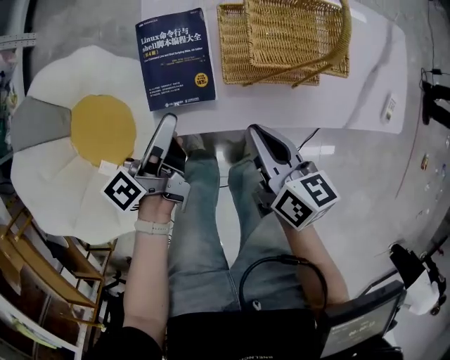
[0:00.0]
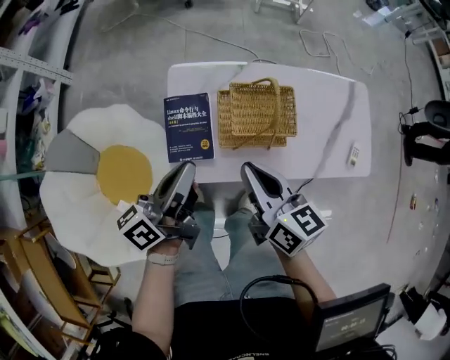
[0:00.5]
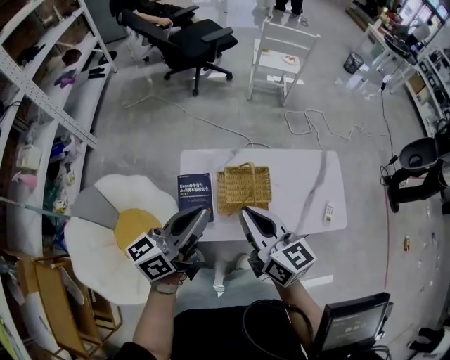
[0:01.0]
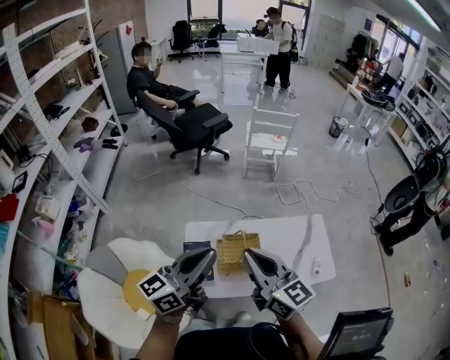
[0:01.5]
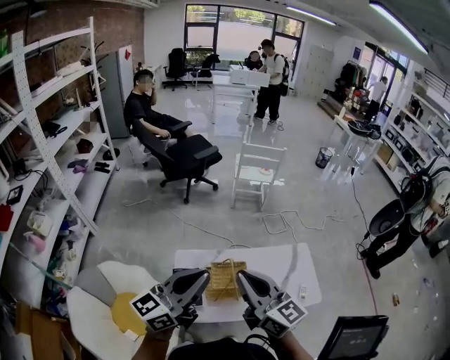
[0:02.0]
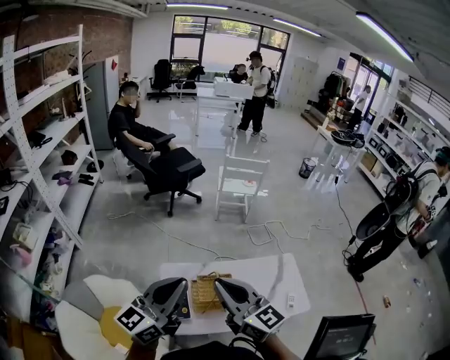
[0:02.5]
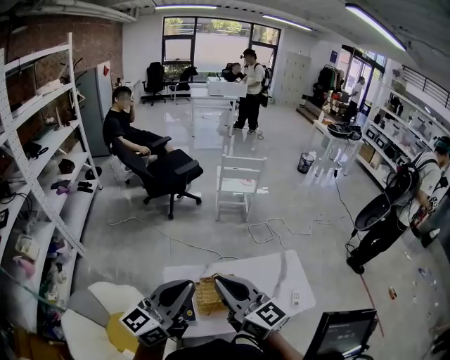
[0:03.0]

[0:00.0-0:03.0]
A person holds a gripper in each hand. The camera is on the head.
0:00.0 to 0:01.5: Both grippers travel together upward, about 50 cm. The left gripper twists approximately 50 degrees clockwise, seen from behind, and closes its fingers. The right gripper tilts its fingers roughly 30 degrees upward.
0:01.5 to 0:03.0: The grippers both shift upward by approximately 5 cm.

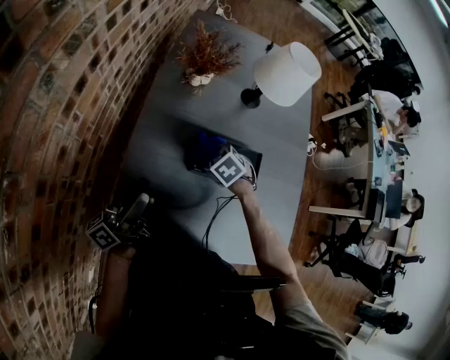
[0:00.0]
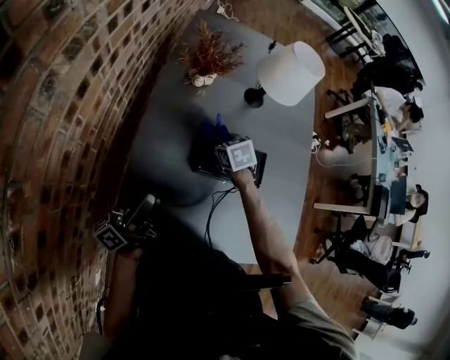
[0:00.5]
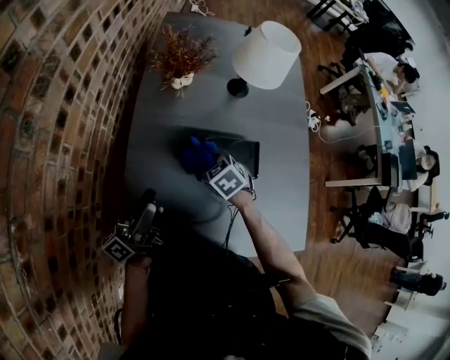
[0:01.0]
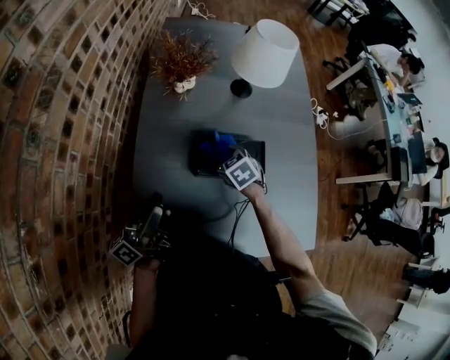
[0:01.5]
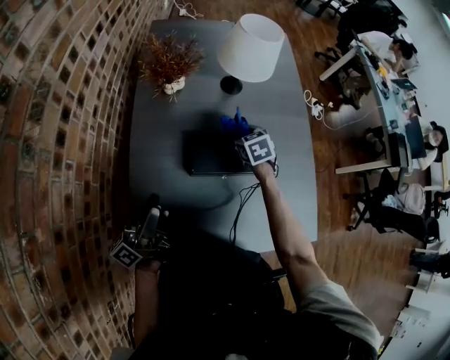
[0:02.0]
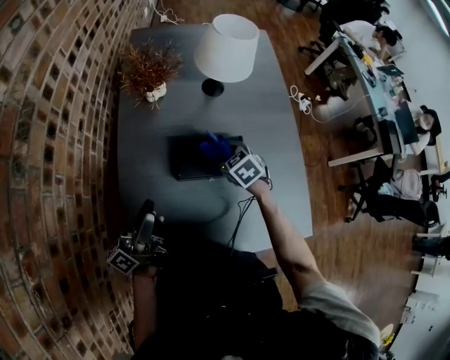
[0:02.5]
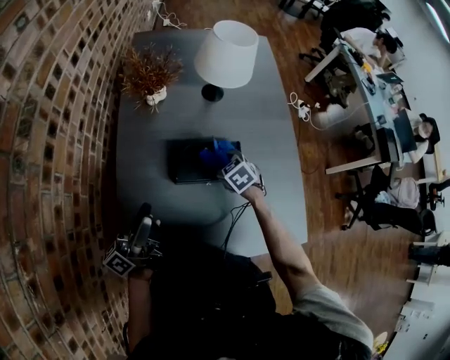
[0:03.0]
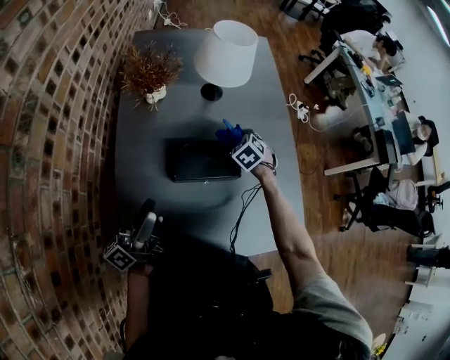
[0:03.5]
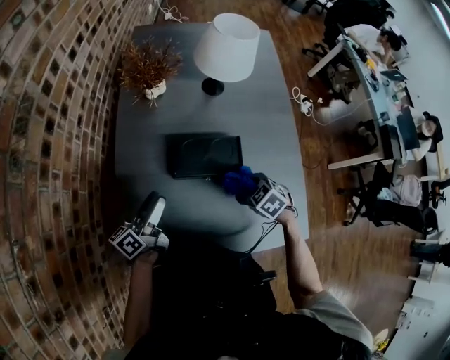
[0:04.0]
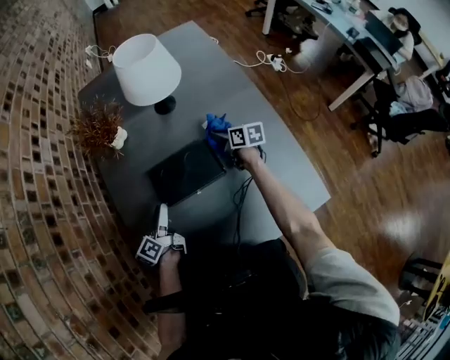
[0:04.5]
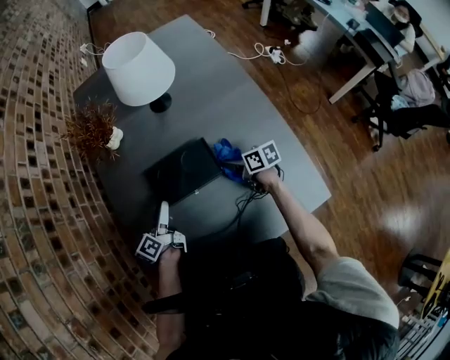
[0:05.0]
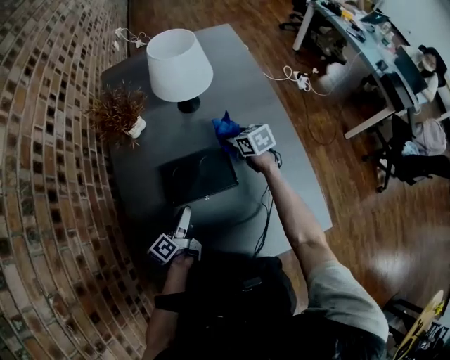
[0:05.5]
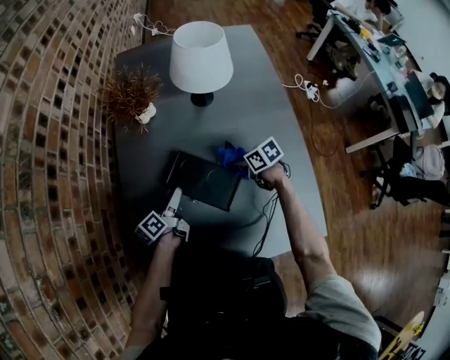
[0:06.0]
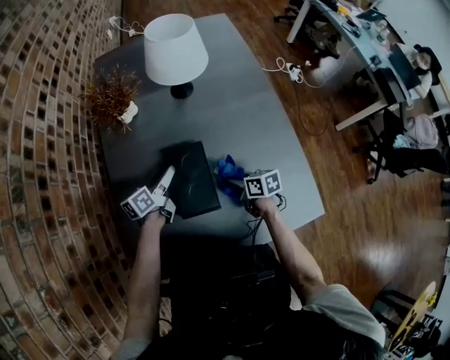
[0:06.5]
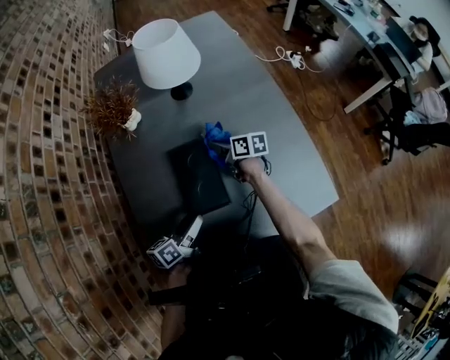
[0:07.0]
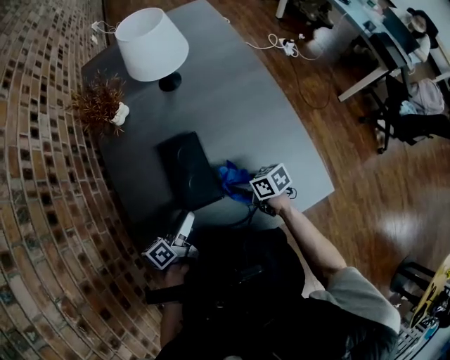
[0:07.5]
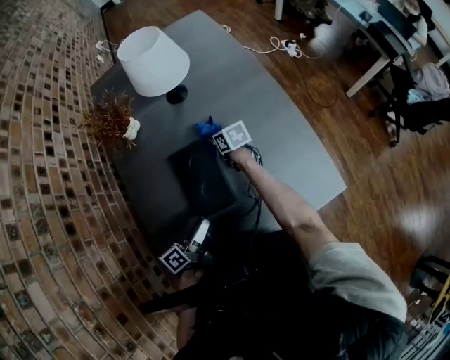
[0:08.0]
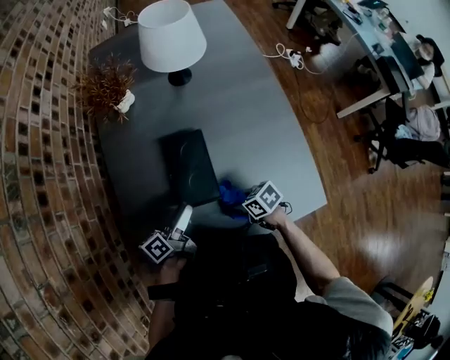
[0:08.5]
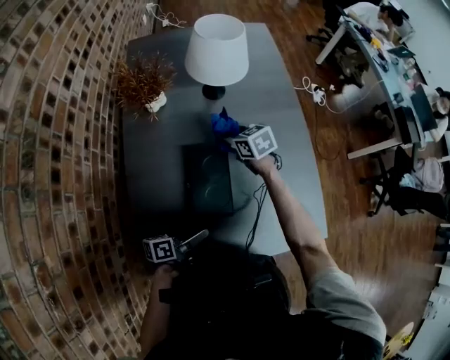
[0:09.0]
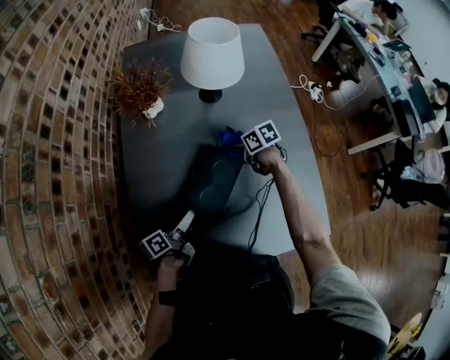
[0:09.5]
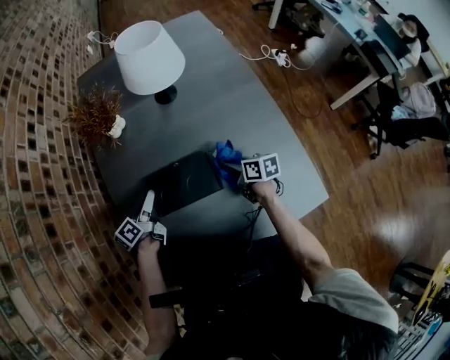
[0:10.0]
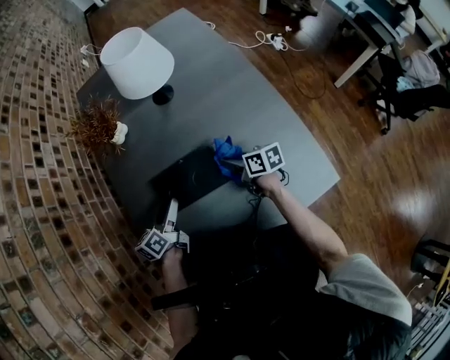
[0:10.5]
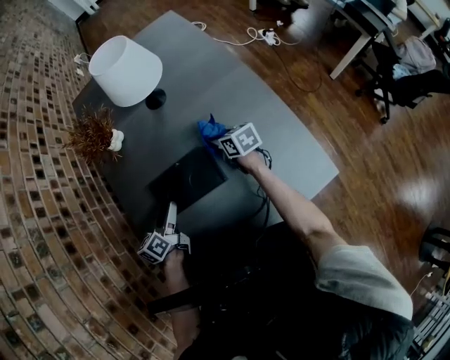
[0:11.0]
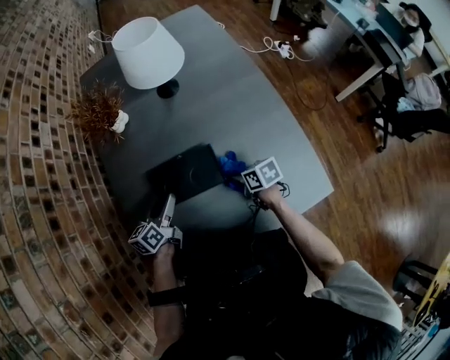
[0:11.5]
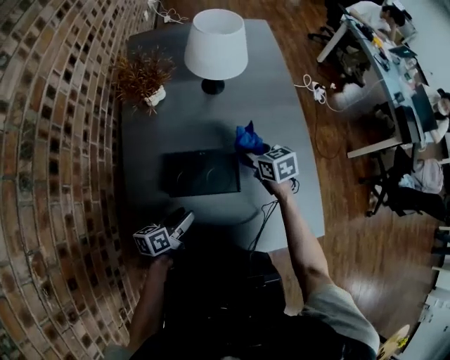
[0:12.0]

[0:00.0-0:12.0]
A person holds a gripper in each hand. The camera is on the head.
0:00.0 to 0:02.0: The right gripper goes approximately 15 cm to the right and forward, and swivels approximately 40 degrees.
0:02.0 to 0:04.0: The right gripper goes forward and backward, approximately 20 cm each way, reversing 2 times, and swivels roughly 30 degrees; the left gripper is displaced downward and to the right by approximately 10 cm, and swivels about 20 degrees.
0:04.0 to 0:06.0: The left gripper shifts some 15 cm downward, forward and to the right; the right gripper moves forward and backward over approximately 20 cm, changing direction 3 times, and rotates about 40 degrees.
0:06.0 to 0:08.0: The right gripper rotates some 30 degrees; the left gripper moves approximately 15 cm, and swivels some 20 degrees.
0:08.0 to 0:10.0: The left gripper changes place by approximately 20 cm. Meanwhile the right gripper travels upward and back again, some 10 cm each way.
0:10.0 to 0:12.0: The left gripper travels backward and to the right by approximately 15 cm; the right gripper goes forward and backward, approximately 15 cm each way, reversing 2 times, and changes its angle by about 40 degrees.

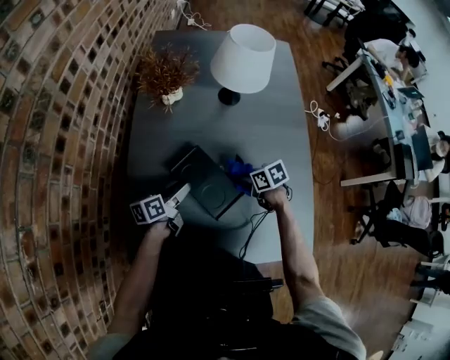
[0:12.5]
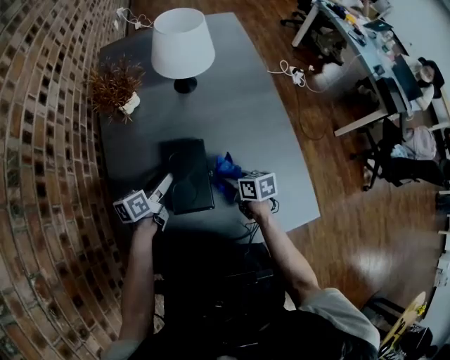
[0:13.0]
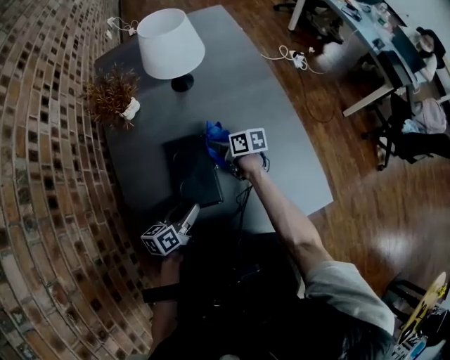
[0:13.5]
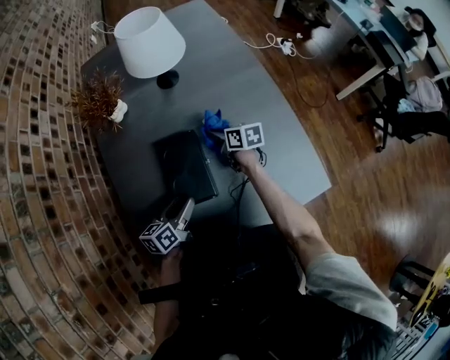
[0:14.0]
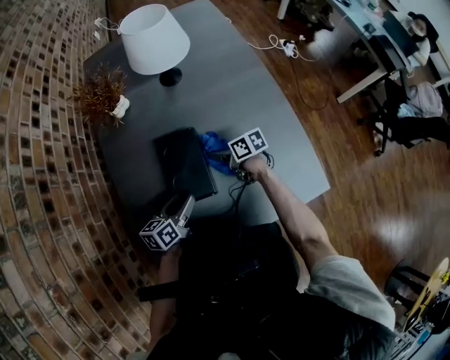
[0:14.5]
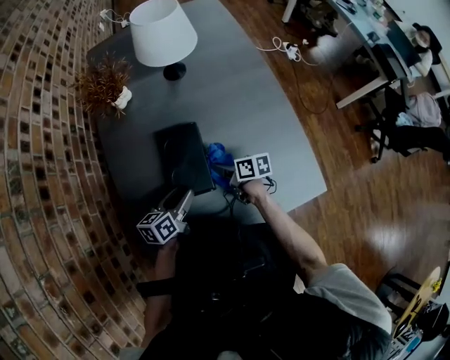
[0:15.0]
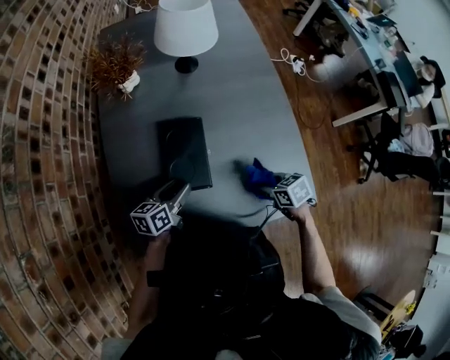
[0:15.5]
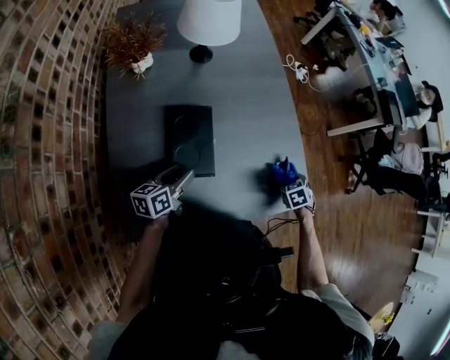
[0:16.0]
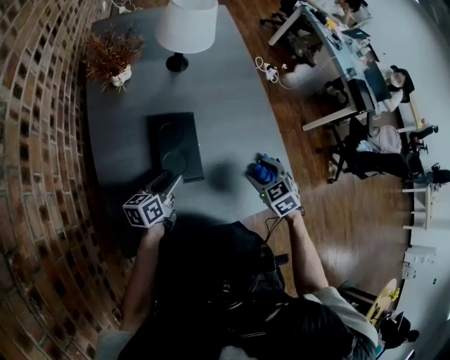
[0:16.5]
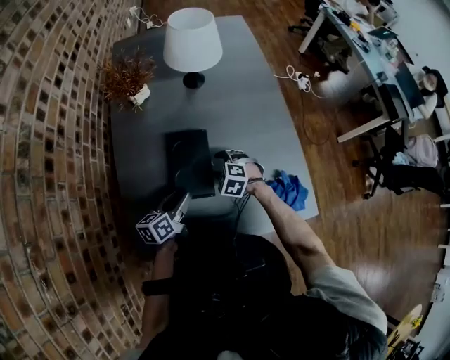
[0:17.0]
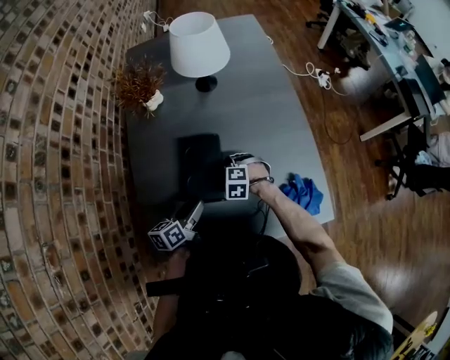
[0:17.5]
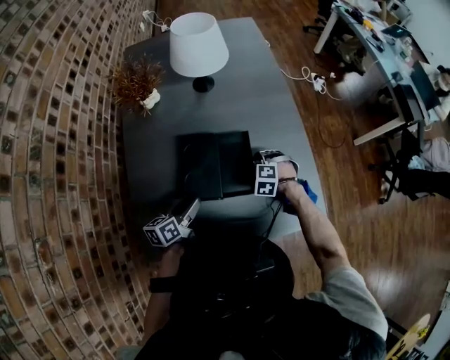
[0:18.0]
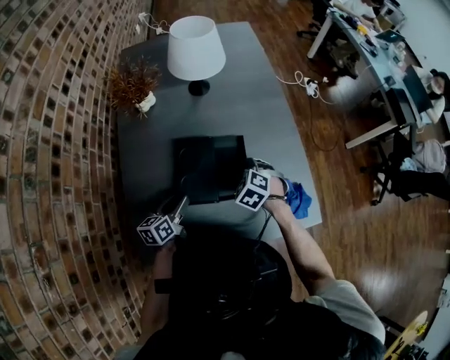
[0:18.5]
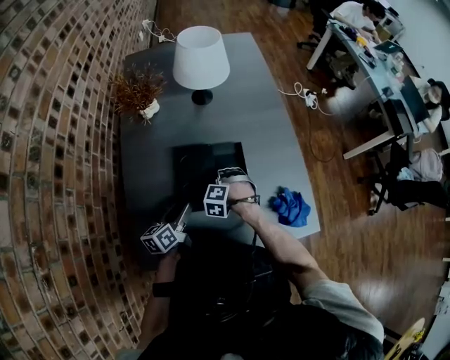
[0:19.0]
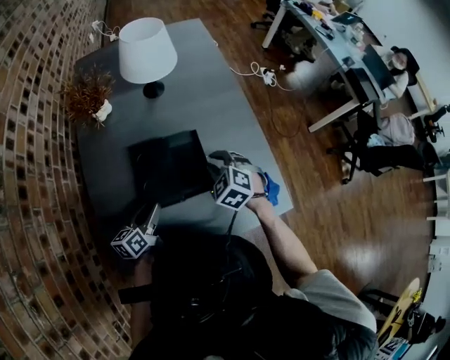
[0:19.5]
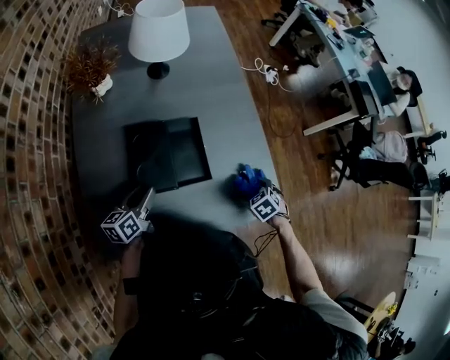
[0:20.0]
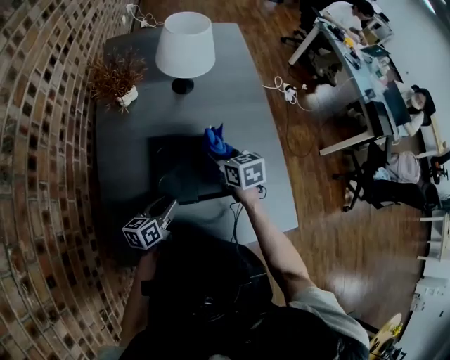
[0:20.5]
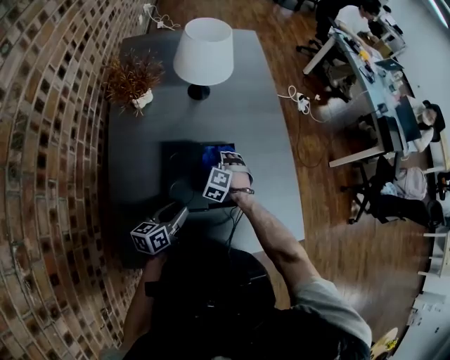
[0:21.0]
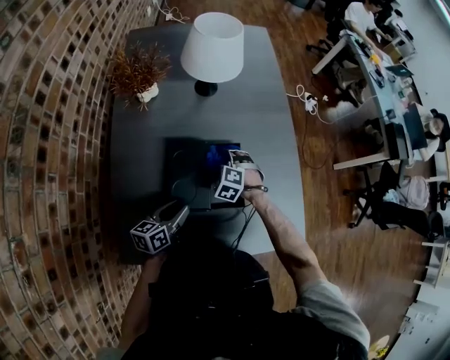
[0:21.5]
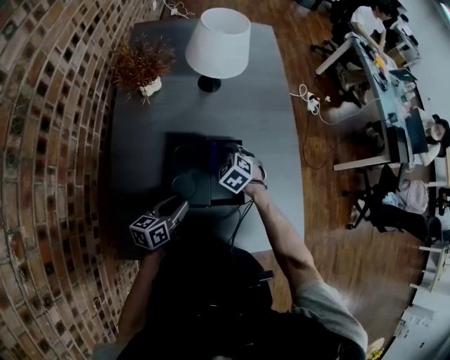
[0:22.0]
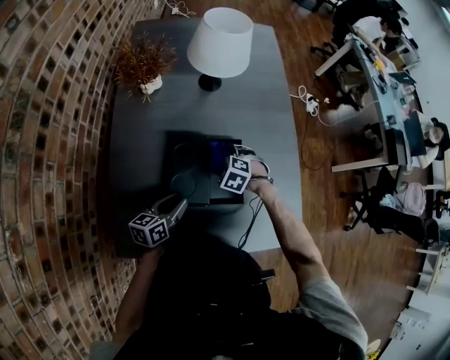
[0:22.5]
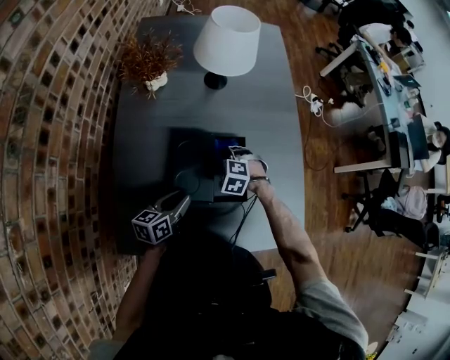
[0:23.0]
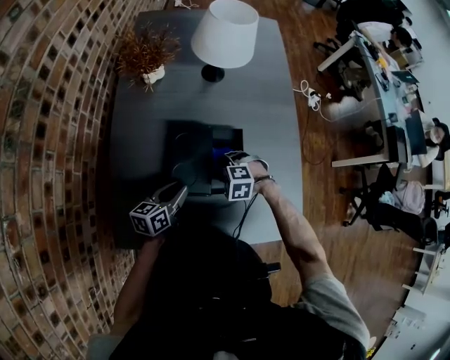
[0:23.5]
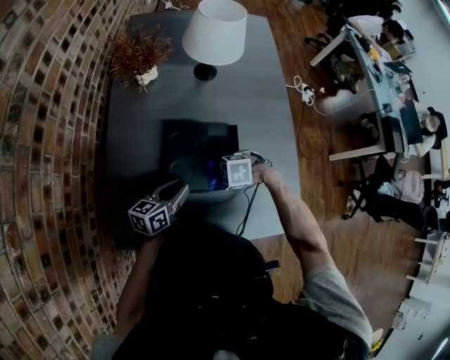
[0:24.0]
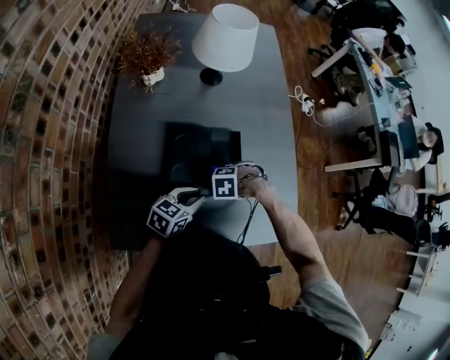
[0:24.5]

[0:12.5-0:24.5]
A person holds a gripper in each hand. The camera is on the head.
0:12.5 to 0:14.5: The right gripper changes its angle by about 30 degrees, while the left gripper changes place by roughly 10 cm, and changes its angle by approximately 30 degrees.
0:14.5 to 0:16.5: The right gripper ends up approximately 20 cm from where it was, and changes its angle by some 70 degrees.
0:16.5 to 0:18.5: The right gripper goes left and right, about 15 cm each way, reversing 2 times, changes its angle by approximately 20 degrees, and closes up.
0:18.5 to 0:20.5: The right gripper swings up and down, approximately 15 cm each way, with 3 reversals, rolls clockwise, seen from behind, by roughly 50 degrees, and opens, then closes again.
0:20.5 to 0:22.5: The right gripper goes some 10 cm downward, rolls counterclockwise, seen from behind, by roughly 60 degrees, and opens.
0:22.5 to 0:24.5: The right gripper ends up roughly 10 cm from where it was, changes its angle by some 30 degrees, and closes up. Meanwhile the left gripper ends up some 5 cm from where it was, and rotates roughly 30 degrees.
